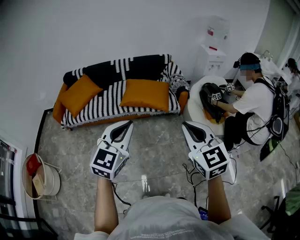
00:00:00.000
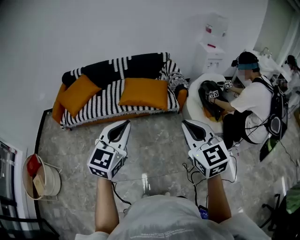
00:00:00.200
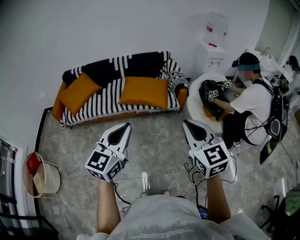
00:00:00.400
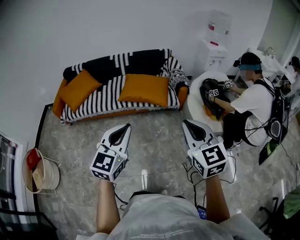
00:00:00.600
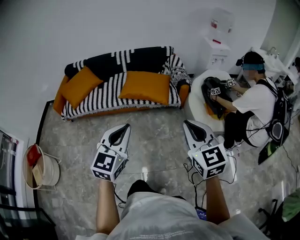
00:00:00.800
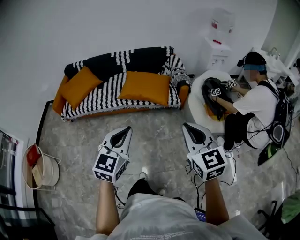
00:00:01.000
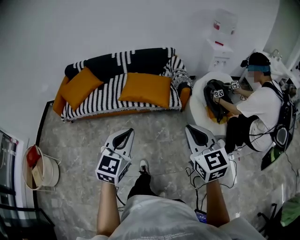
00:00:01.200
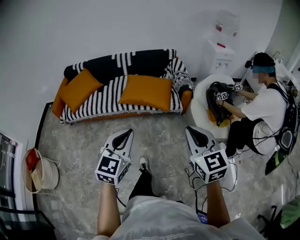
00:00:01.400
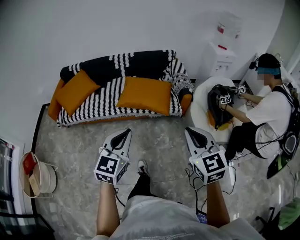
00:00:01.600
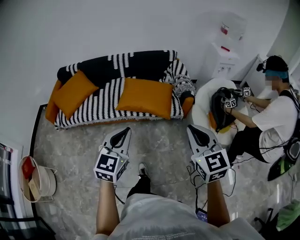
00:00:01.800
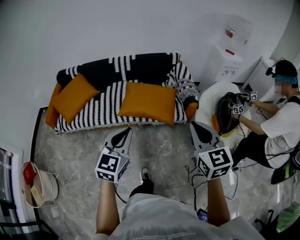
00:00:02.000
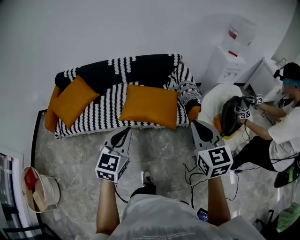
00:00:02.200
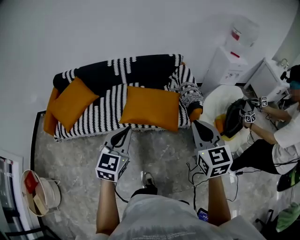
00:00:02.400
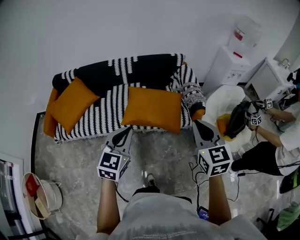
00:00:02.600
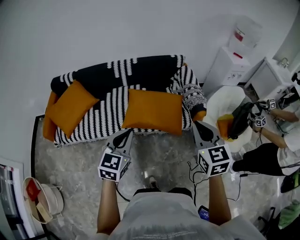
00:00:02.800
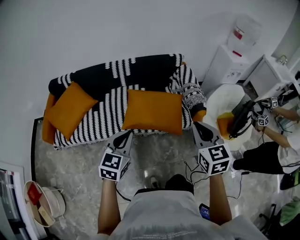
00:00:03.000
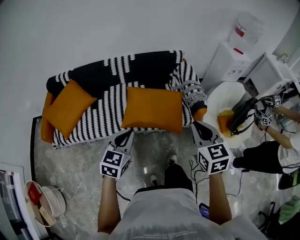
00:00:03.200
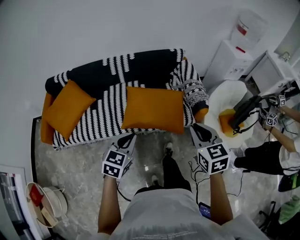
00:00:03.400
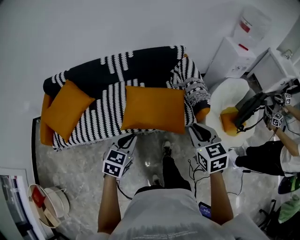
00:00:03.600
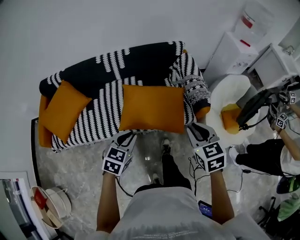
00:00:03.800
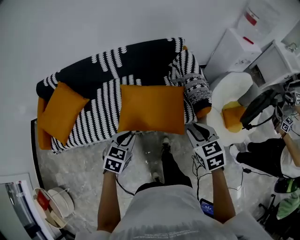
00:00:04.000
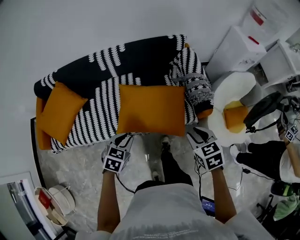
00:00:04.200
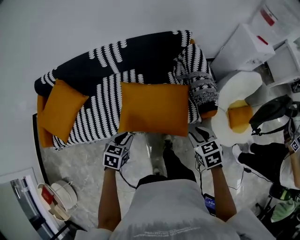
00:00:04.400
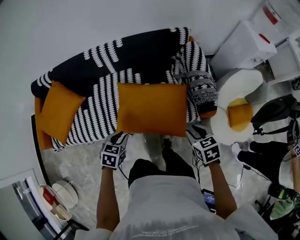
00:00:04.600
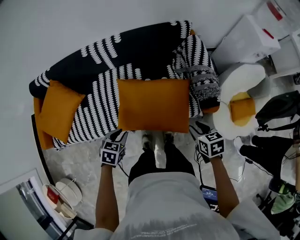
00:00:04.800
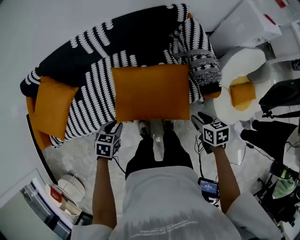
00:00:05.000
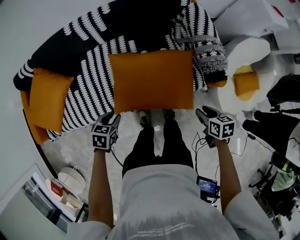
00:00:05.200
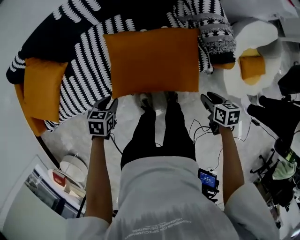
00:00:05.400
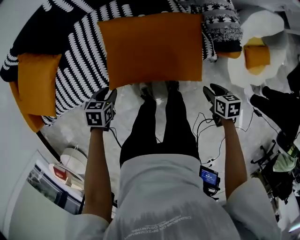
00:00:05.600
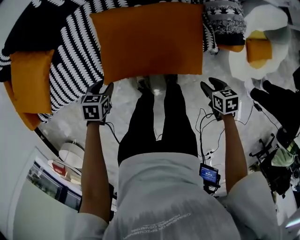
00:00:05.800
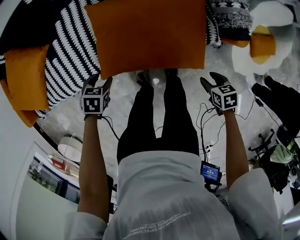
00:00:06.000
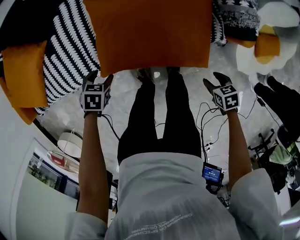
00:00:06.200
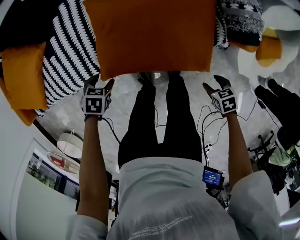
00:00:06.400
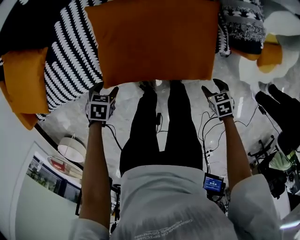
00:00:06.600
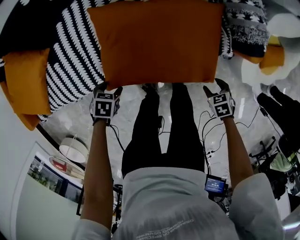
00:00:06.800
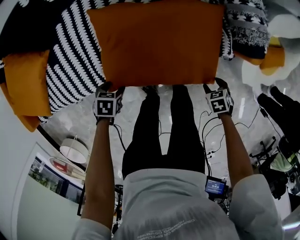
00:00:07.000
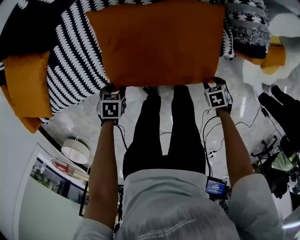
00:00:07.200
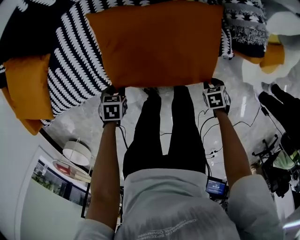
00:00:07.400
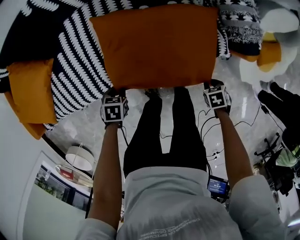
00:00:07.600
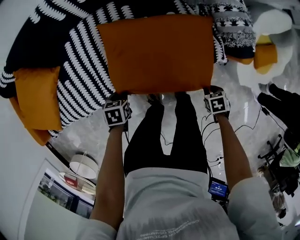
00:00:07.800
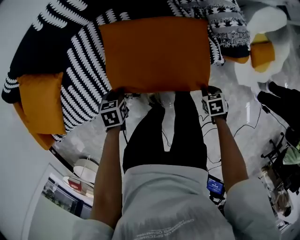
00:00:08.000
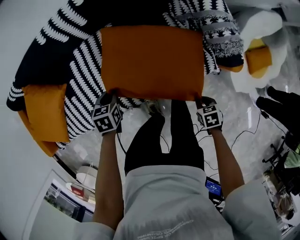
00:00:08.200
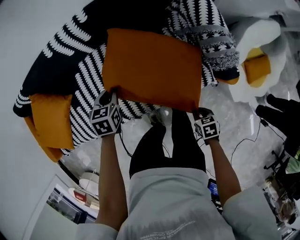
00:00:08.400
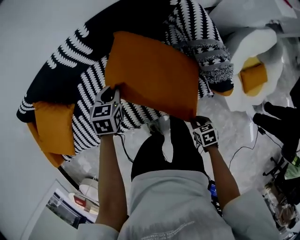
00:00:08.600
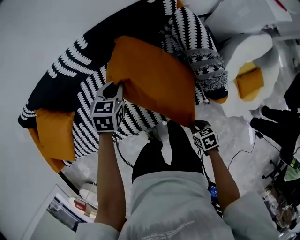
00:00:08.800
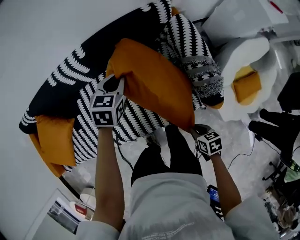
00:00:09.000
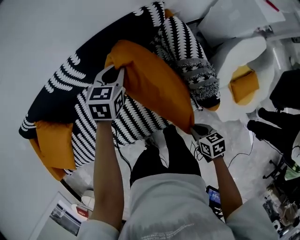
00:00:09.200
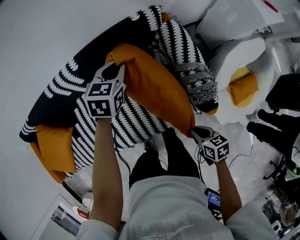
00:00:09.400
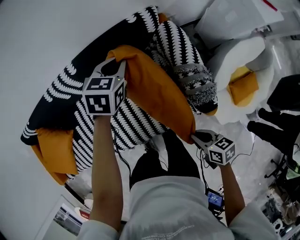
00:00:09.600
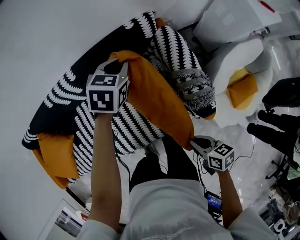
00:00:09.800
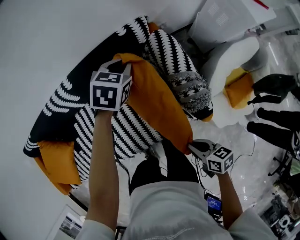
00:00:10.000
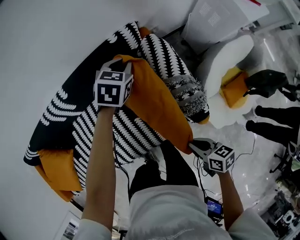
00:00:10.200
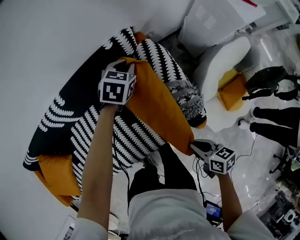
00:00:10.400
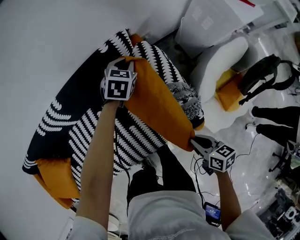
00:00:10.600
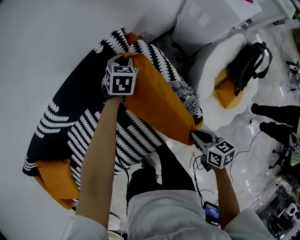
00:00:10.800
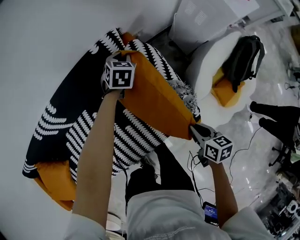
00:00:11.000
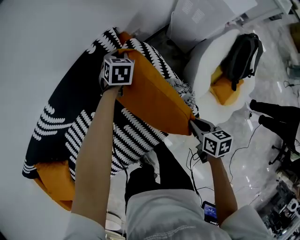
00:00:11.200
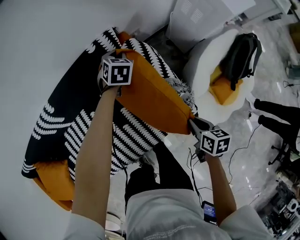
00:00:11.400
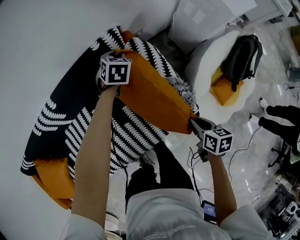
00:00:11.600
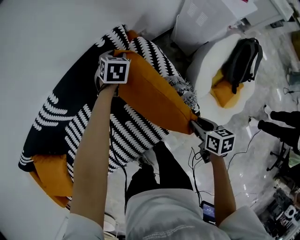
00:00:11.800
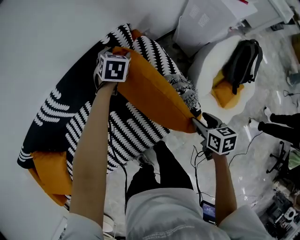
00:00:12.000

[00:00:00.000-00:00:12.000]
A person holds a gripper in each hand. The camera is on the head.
00:00:00.000 to 00:00:01.600: The two grippers go about 15 cm forward and downward.
00:00:01.600 to 00:00:03.000: The left gripper moves forward and to the left, approximately 35 cm. Meanwhile the right gripper shifts some 30 cm forward.
00:00:03.000 to 00:00:04.400: Both grippers move downward and forward, approximately 30 cm. The left gripper points its fingers roughly 30 degrees further downward, and opens, while the right gripper angles its fingers downward, by roughly 30 degrees, and opens its fingers.
00:00:04.400 to 00:00:06.000: The grippers both shift downward by approximately 30 cm. The right gripper swivels about 30 degrees. The left gripper swivels some 30 degrees, and opens its fingers.
00:00:06.000 to 00:00:07.600: Both grippers move downward, some 5 cm. The right gripper closes its fingers. Meanwhile the left gripper closes its fingers.
00:00:07.600 to 00:00:09.000: The left gripper moves some 50 cm, and tilts its fingers roughly 30 degrees upward. Meanwhile the right gripper travels upward by roughly 15 cm, and turns by about 30 degrees.
00:00:09.000 to 00:00:10.400: The left gripper travels to the right and forward by roughly 30 cm; the right gripper shifts approximately 15 cm to the right, upward and forward, and turns by some 20 degrees.
00:00:10.400 to 00:00:12.000: The right gripper shifts about 10 cm to the right and forward, turns by approximately 20 degrees, and opens its fingers. The left gripper opens.

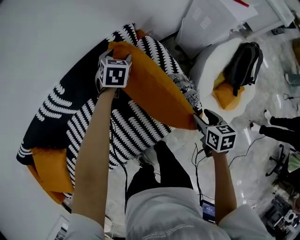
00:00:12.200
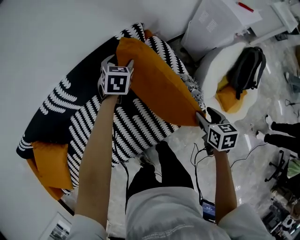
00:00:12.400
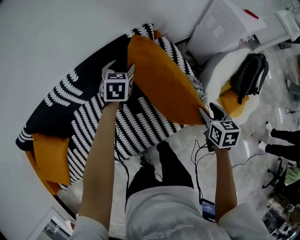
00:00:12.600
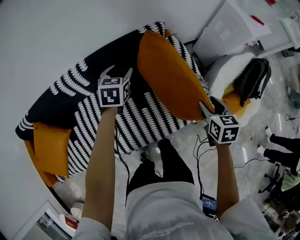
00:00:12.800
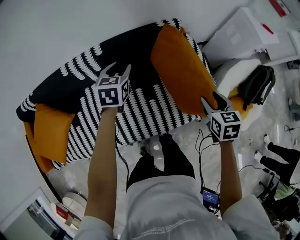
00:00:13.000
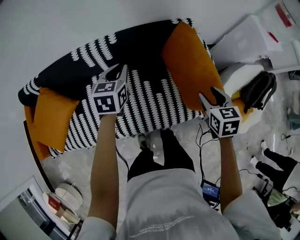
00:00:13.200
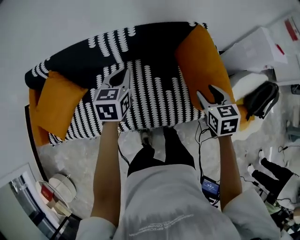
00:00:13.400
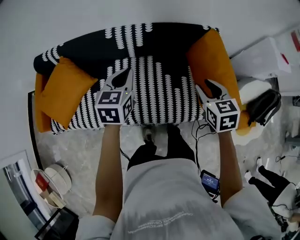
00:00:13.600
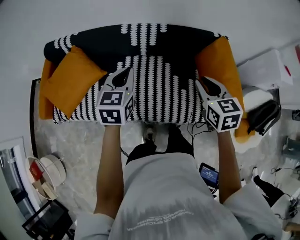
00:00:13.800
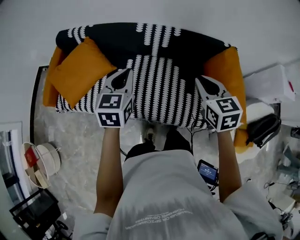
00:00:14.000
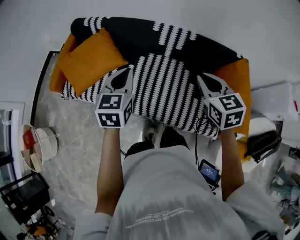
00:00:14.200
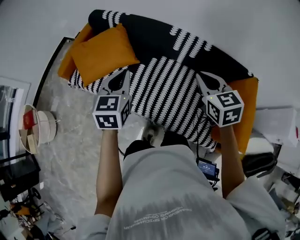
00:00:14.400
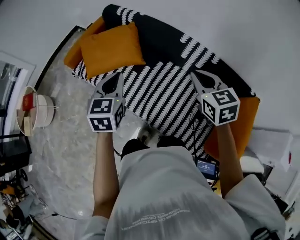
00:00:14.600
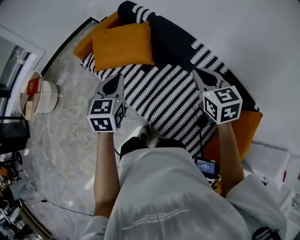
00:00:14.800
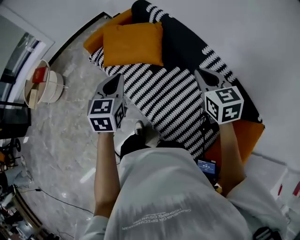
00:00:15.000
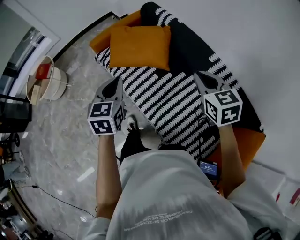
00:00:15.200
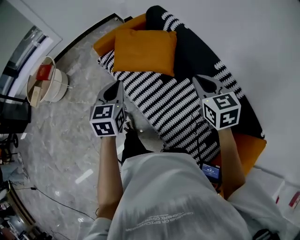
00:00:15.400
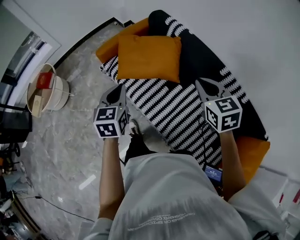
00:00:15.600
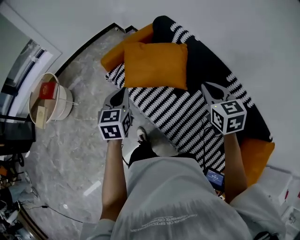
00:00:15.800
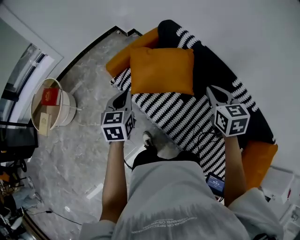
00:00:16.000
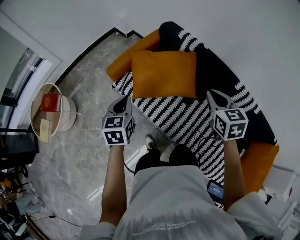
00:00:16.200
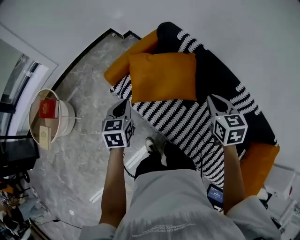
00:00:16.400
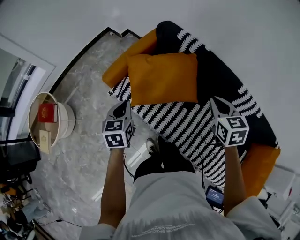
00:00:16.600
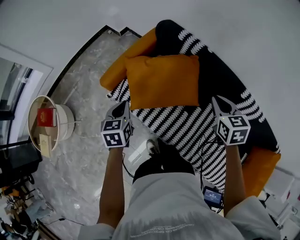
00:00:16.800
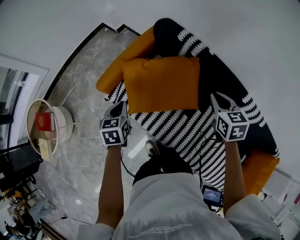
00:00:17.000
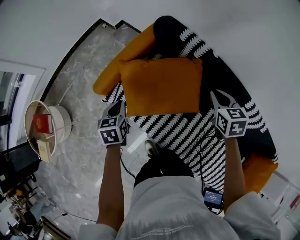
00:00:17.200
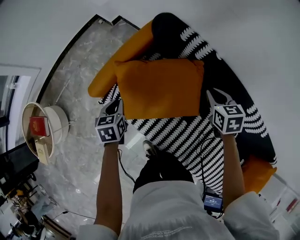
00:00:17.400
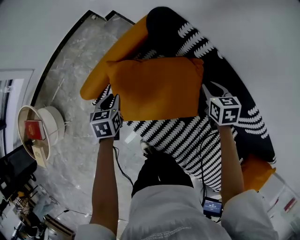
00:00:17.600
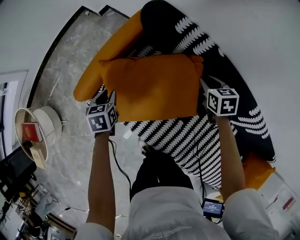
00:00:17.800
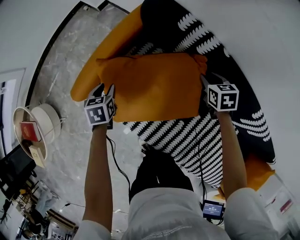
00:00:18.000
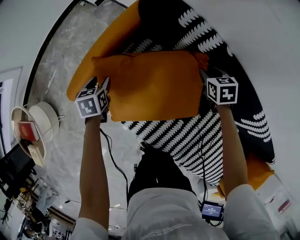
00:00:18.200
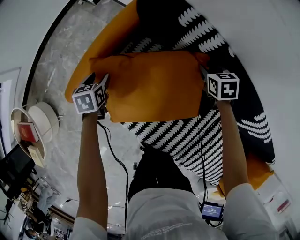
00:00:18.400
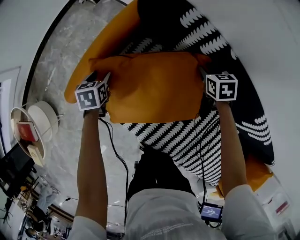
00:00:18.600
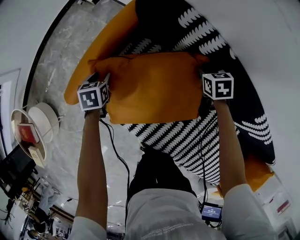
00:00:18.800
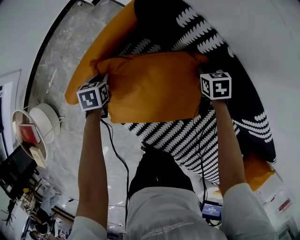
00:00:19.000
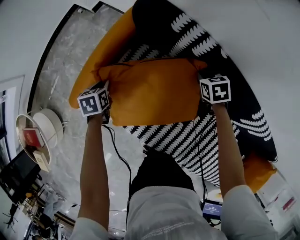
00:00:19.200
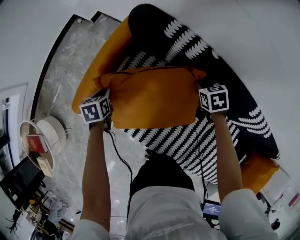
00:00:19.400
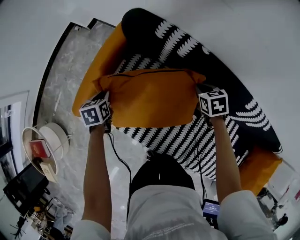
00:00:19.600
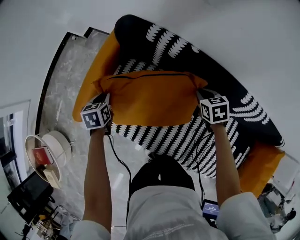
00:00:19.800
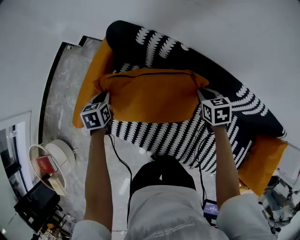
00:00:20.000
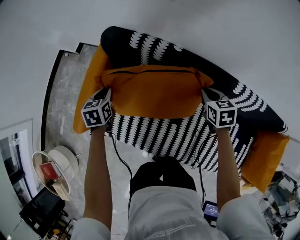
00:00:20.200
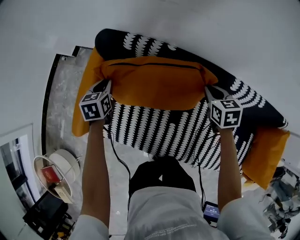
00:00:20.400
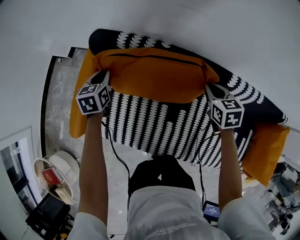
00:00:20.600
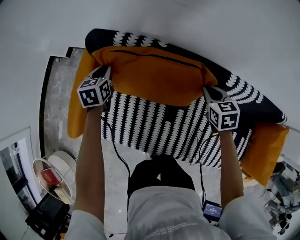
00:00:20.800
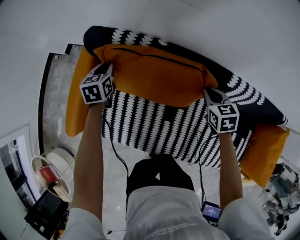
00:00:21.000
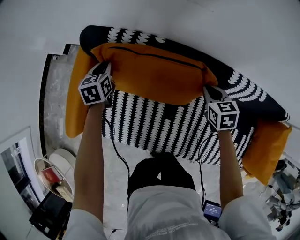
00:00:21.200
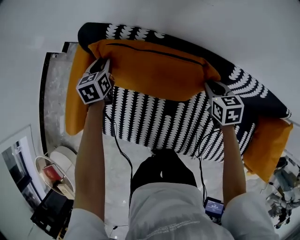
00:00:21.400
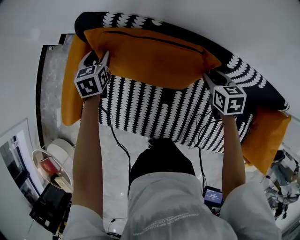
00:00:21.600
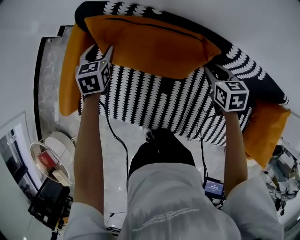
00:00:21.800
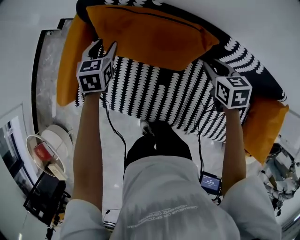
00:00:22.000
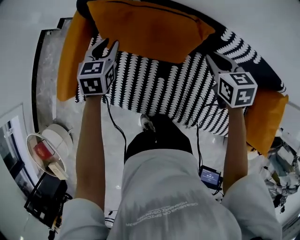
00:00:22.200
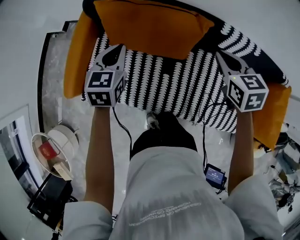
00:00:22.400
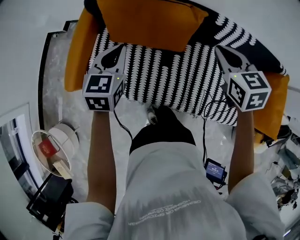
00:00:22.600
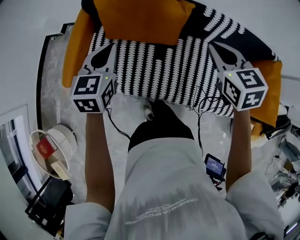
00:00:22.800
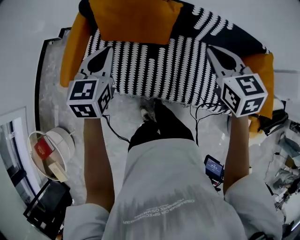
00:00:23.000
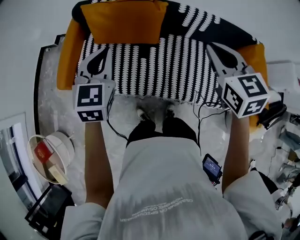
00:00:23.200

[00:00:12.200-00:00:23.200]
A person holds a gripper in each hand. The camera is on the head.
00:00:12.200 to 00:00:13.800: The right gripper moves approximately 50 cm, rolls counterclockwise, seen from behind, by some 40 degrees, and closes its fingers; the left gripper ends up about 60 cm from where it was, rotates some 40 degrees, and closes up.
00:00:13.800 to 00:00:15.400: The right gripper moves about 40 cm, and changes its angle by some 60 degrees. The left gripper shifts by some 40 cm, and rotates approximately 60 degrees.
00:00:15.400 to 00:00:17.000: The right gripper goes approximately 30 cm forward, and swivels some 30 degrees. Meanwhile the left gripper shifts some 40 cm forward, to the left and downward, and turns by some 20 degrees.
00:00:17.000 to 00:00:18.400: Both grippers move downward and forward, some 35 cm. The left gripper opens its fingers; the right gripper opens up.
00:00:18.400 to 00:00:20.000: The left gripper travels to the right and upward by some 15 cm, and closes its fingers; the right gripper shifts about 20 cm backward, upward and to the right, and closes its fingers.
00:00:20.000 to 00:00:21.600: The right gripper moves to the right, roughly 15 cm, and opens. The left gripper moves to the right and forward, roughly 20 cm, and opens up.
00:00:21.600 to 00:00:23.200: The grippers both shift backward and upward by approximately 50 cm. The left gripper turns by approximately 30 degrees, and closes up; the right gripper turns by approximately 30 degrees, and closes its fingers.
